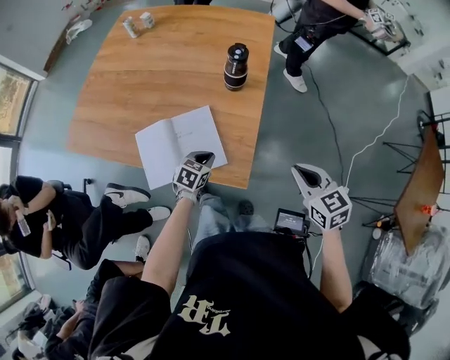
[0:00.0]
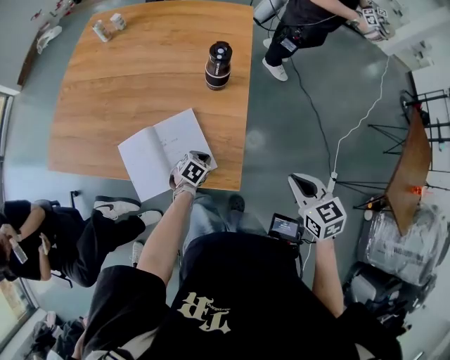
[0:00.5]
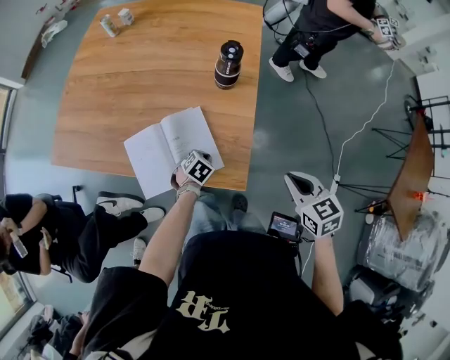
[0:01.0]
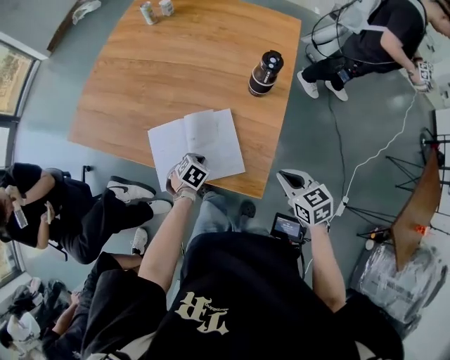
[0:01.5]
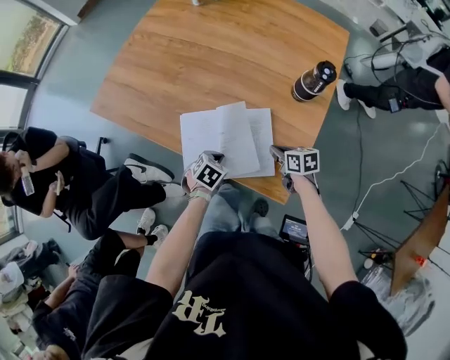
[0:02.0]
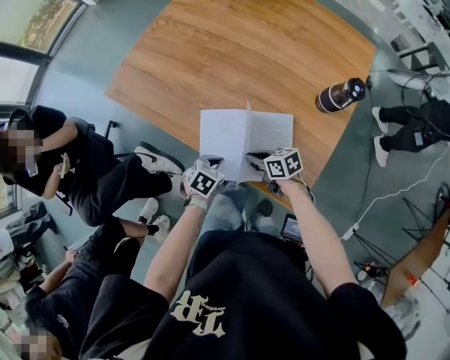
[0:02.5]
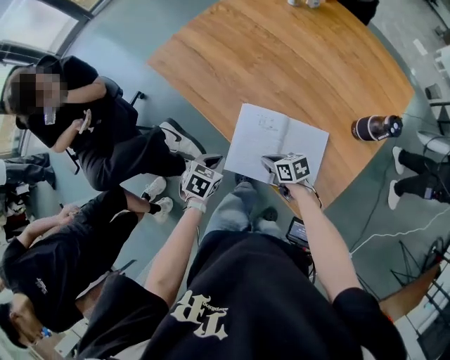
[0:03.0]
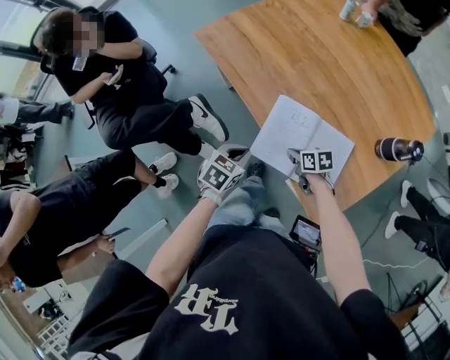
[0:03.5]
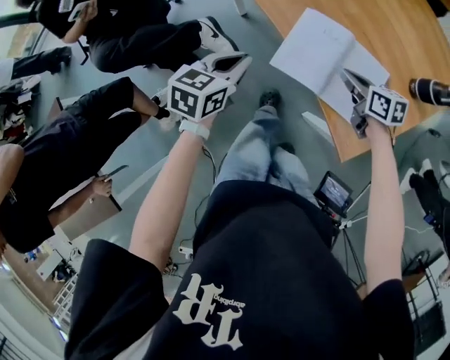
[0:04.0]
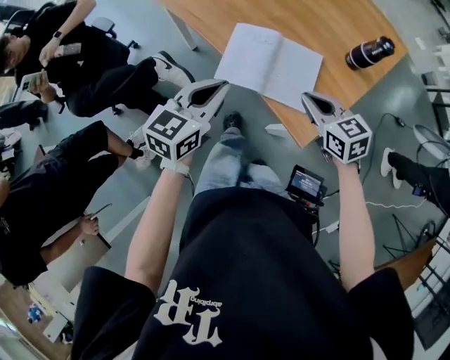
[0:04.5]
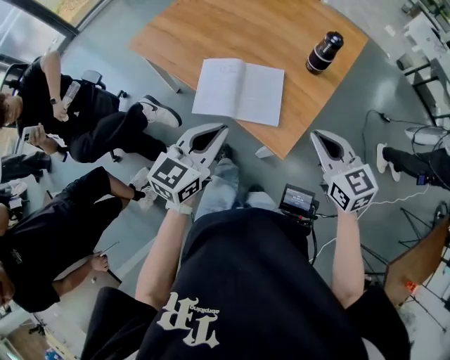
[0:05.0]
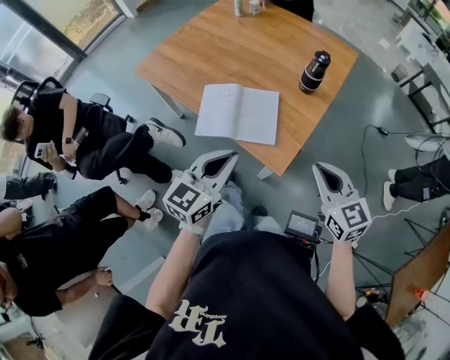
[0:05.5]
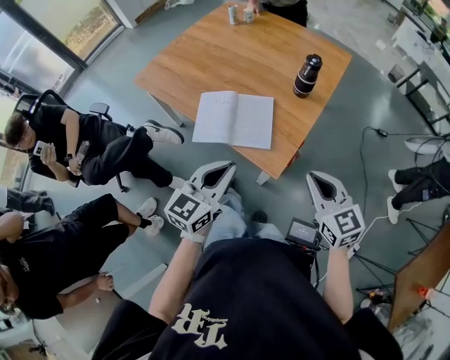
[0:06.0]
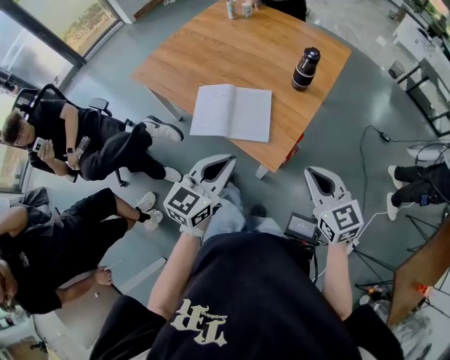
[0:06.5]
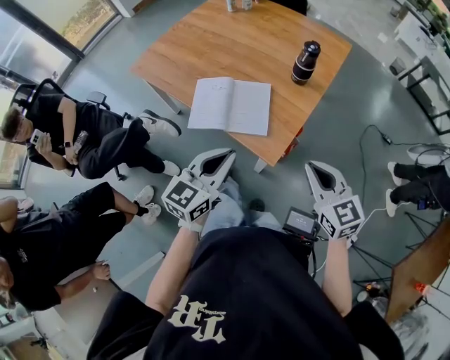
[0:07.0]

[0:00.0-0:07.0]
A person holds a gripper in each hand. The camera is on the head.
0:00.0 to 0:02.0: The right gripper changes place by roughly 35 cm, and swivels roughly 30 degrees; the left gripper changes place by about 15 cm.
0:02.0 to 0:03.5: The right gripper moves roughly 20 cm, and rotates about 30 degrees. The left gripper ends up approximately 20 cm from where it was, and swivels about 40 degrees.
0:03.5 to 0:05.0: Both grippers travel together upward, approximately 30 cm. The right gripper changes its angle by about 50 degrees. Meanwhile the left gripper tilts its fingers roughly 40 degrees upward.
0:05.0 to 0:07.0: The left gripper moves to the right, some 5 cm. The right gripper heads backward and to the right, covering roughly 10 cm.

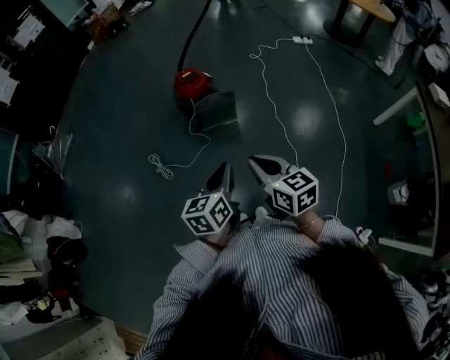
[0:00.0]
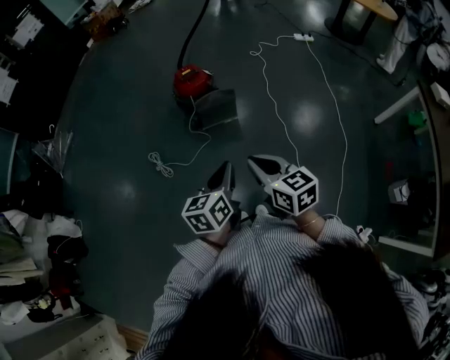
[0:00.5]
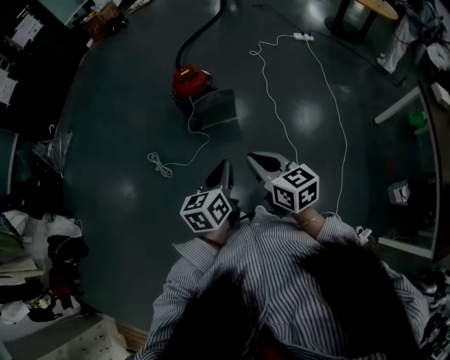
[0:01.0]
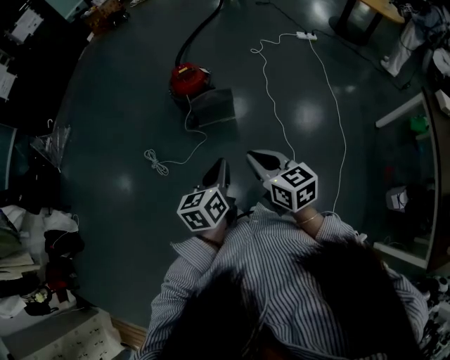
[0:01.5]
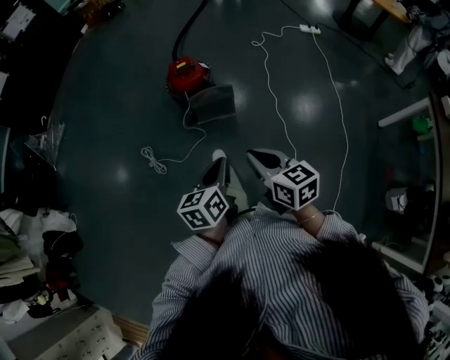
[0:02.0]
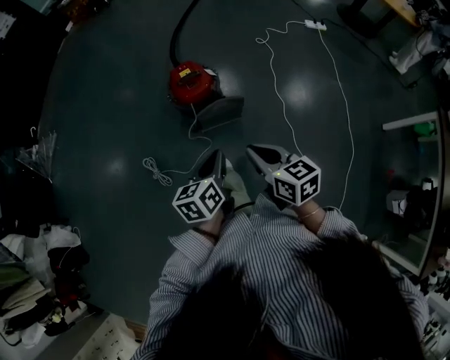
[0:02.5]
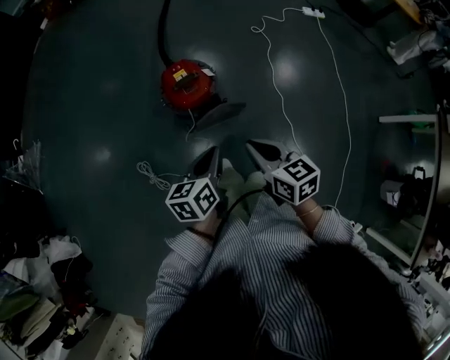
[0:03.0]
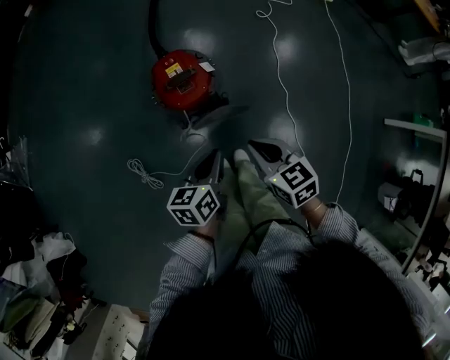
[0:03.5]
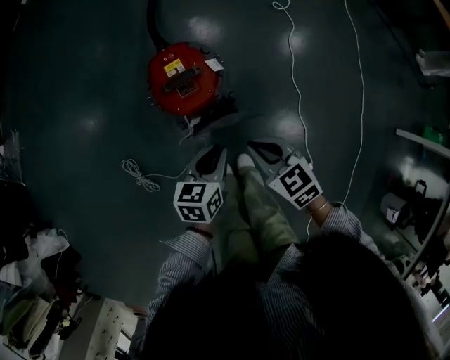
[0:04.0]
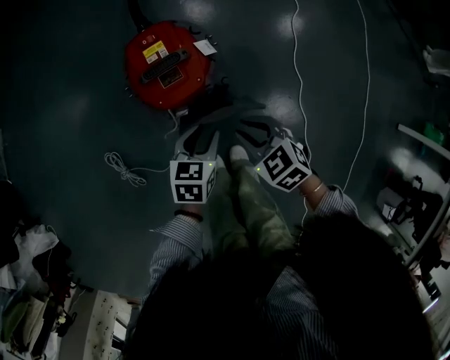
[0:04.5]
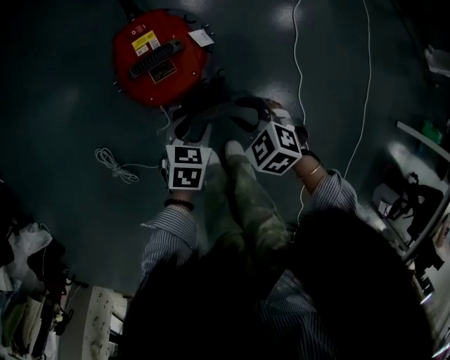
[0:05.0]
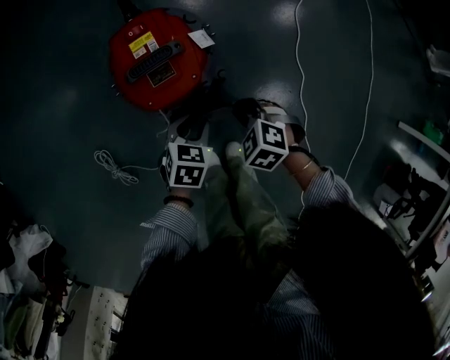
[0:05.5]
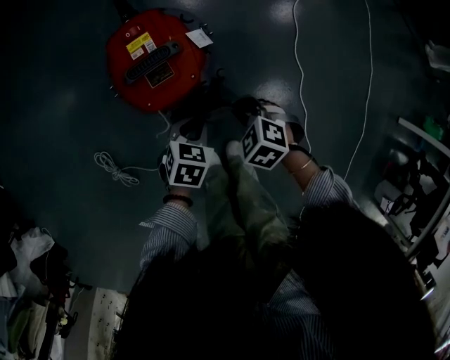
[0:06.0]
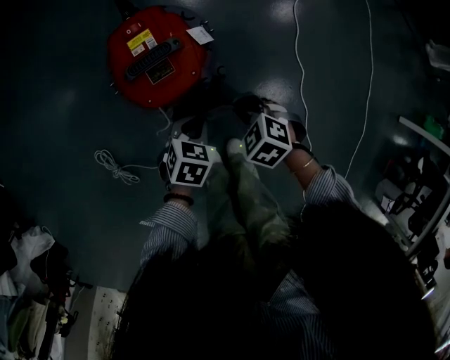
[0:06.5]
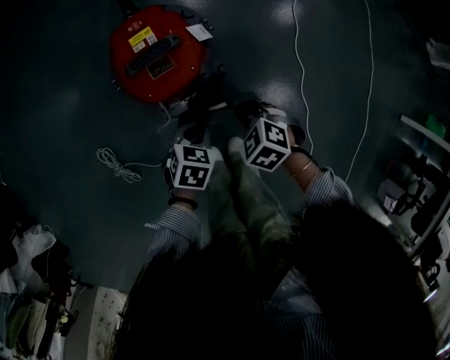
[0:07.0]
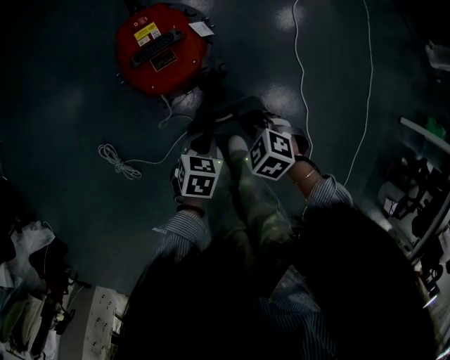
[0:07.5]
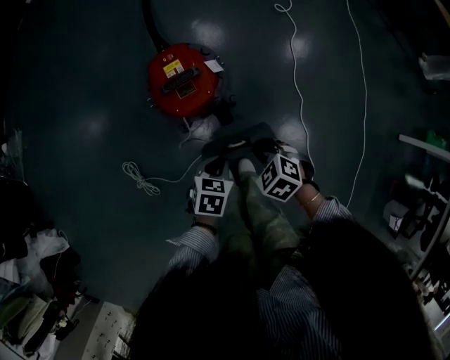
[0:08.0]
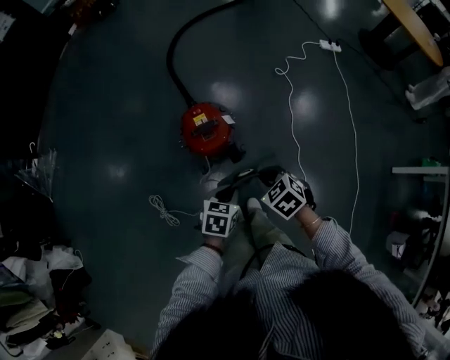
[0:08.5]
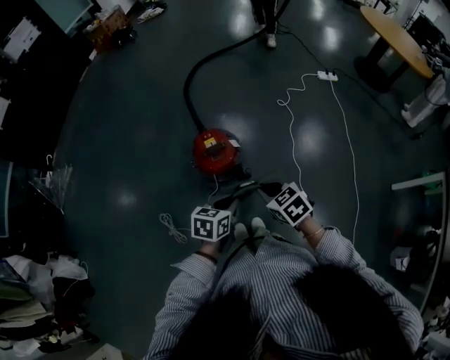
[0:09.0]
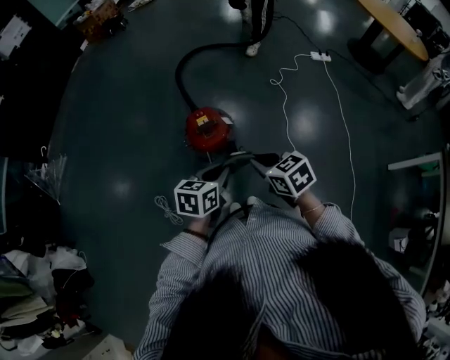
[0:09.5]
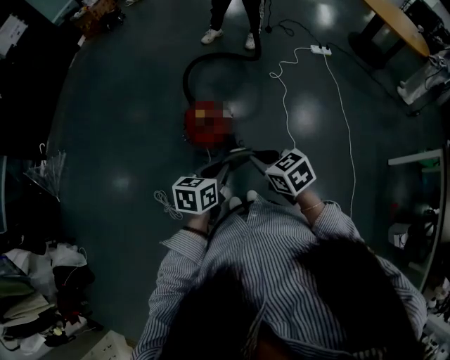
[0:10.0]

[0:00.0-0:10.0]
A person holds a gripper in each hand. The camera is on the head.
0:00.0 to 0:02.0: The right gripper moves forward, approximately 10 cm; the left gripper goes some 10 cm forward and downward.
0:02.0 to 0:04.0: The two grippers travel together, forward, approximately 50 cm. The two grippers go approximately 30 cm downward. The left gripper swivels roughly 20 degrees. The right gripper swivels some 30 degrees.
0:04.0 to 0:06.0: The grippers both shift downward by some 20 cm. The right gripper changes its angle by approximately 40 degrees, and opens and closes again. The left gripper changes its angle by approximately 30 degrees, and opens and closes again.
0:06.0 to 0:08.0: The grippers both shift upward and backward by about 15 cm.
0:08.0 to 0:10.0: The grippers both shift upward by about 35 cm. The right gripper rotates about 40 degrees. Meanwhile the left gripper turns by approximately 20 degrees.

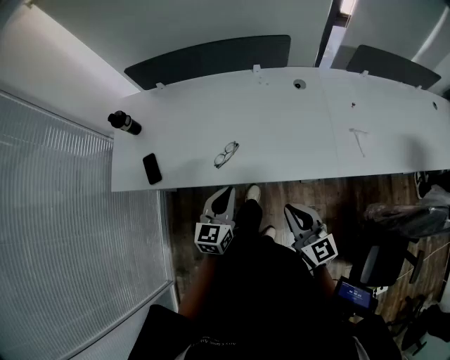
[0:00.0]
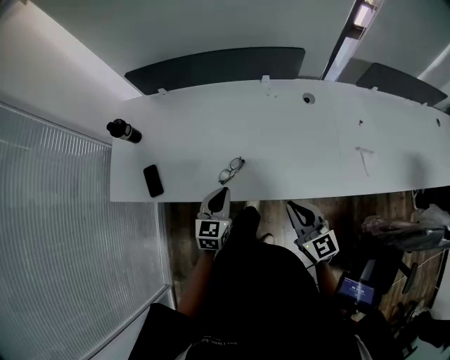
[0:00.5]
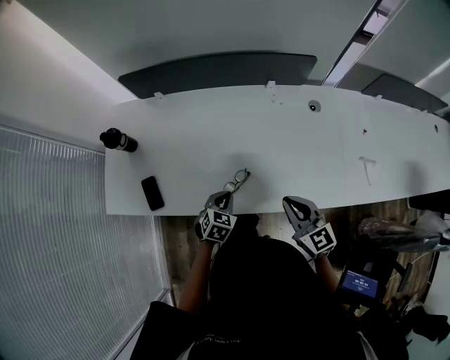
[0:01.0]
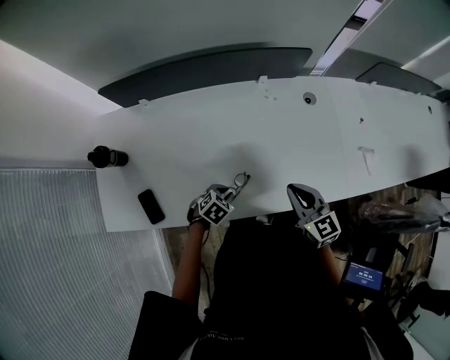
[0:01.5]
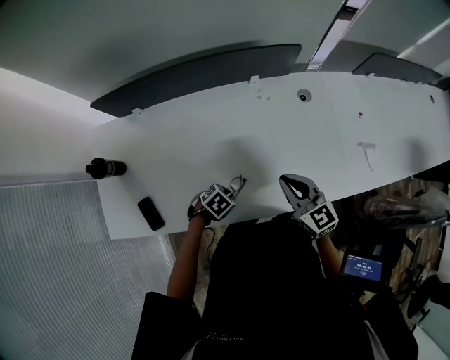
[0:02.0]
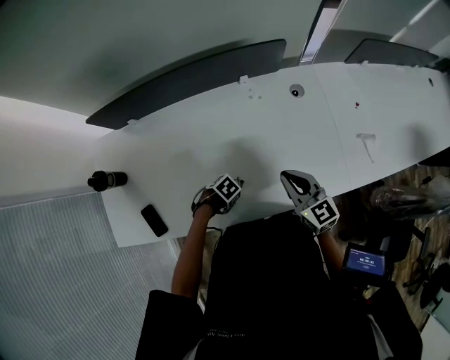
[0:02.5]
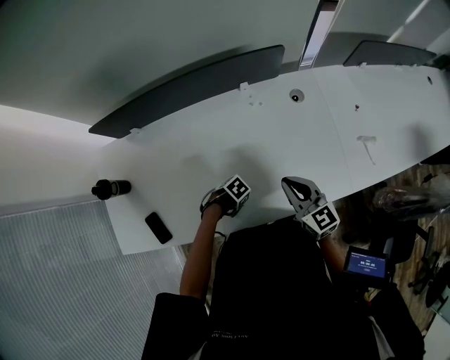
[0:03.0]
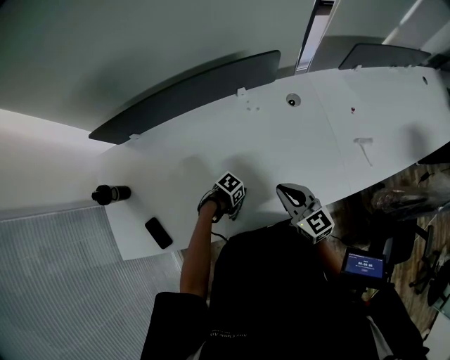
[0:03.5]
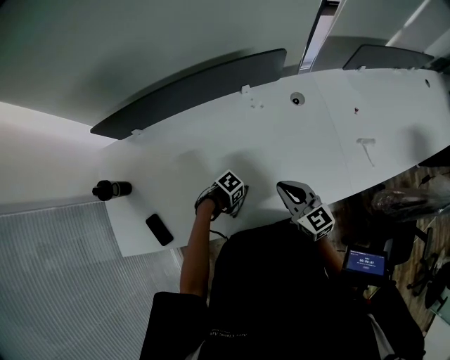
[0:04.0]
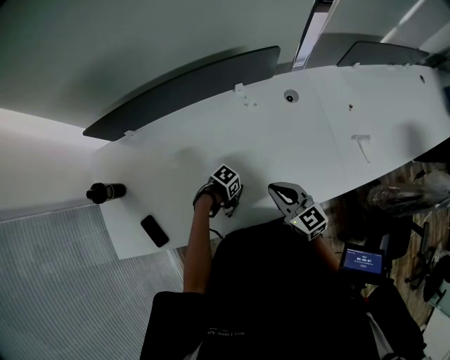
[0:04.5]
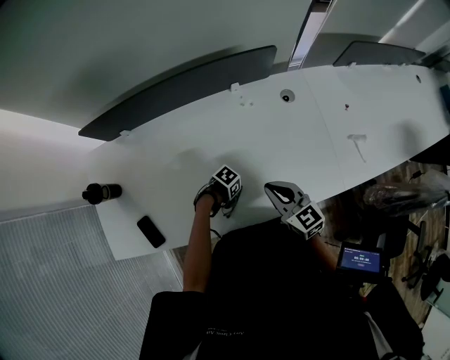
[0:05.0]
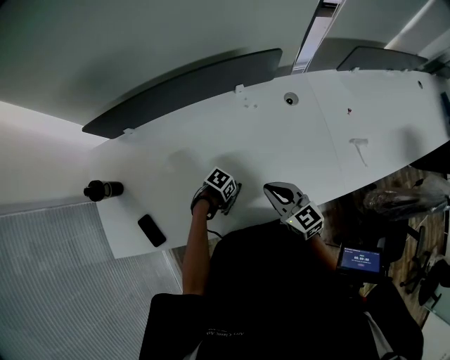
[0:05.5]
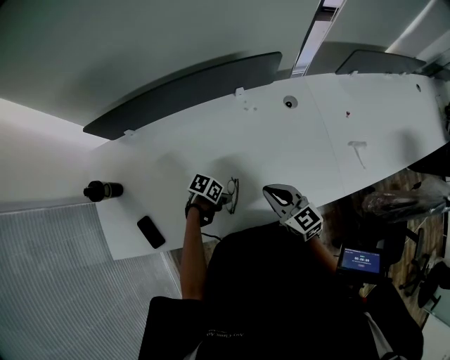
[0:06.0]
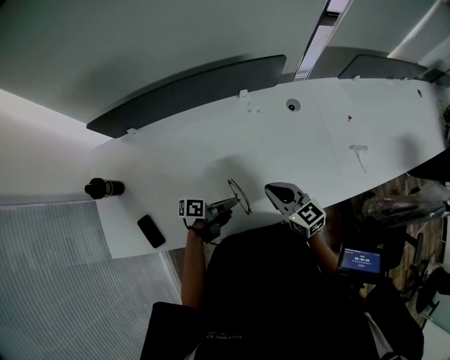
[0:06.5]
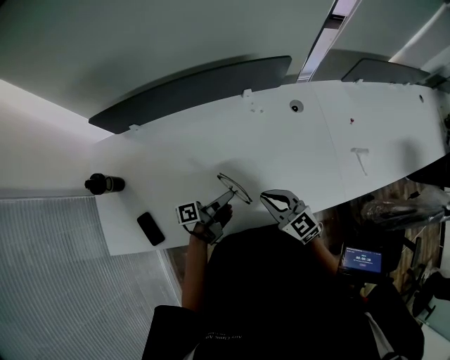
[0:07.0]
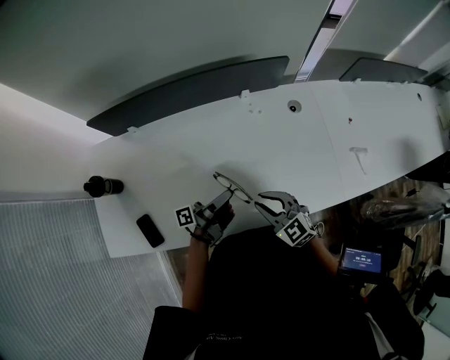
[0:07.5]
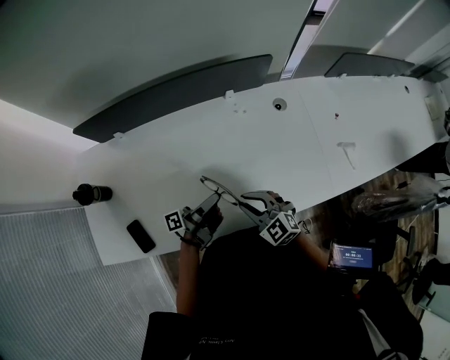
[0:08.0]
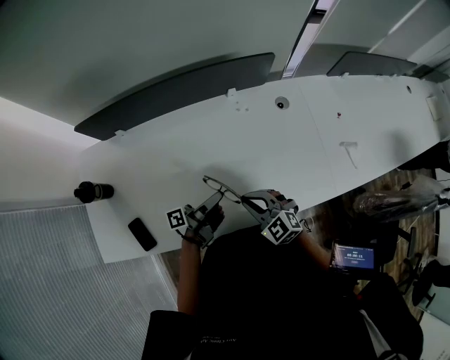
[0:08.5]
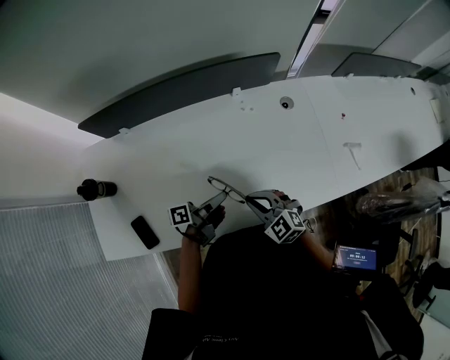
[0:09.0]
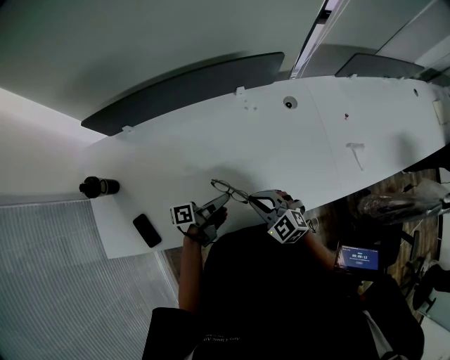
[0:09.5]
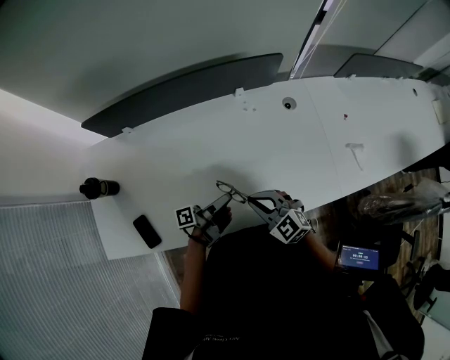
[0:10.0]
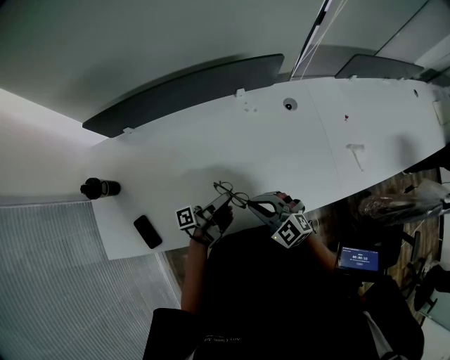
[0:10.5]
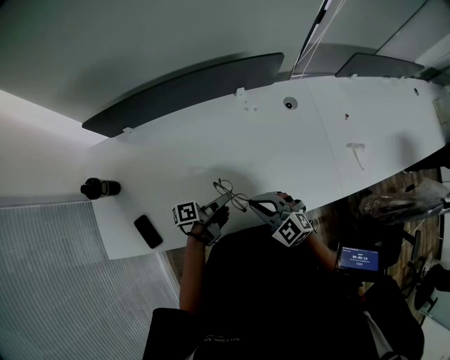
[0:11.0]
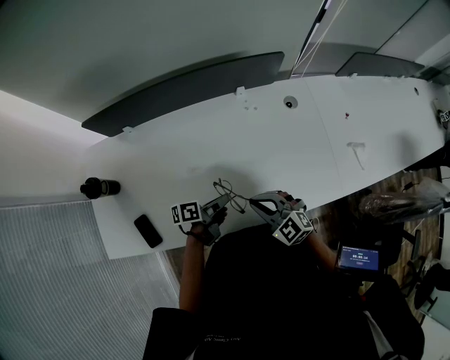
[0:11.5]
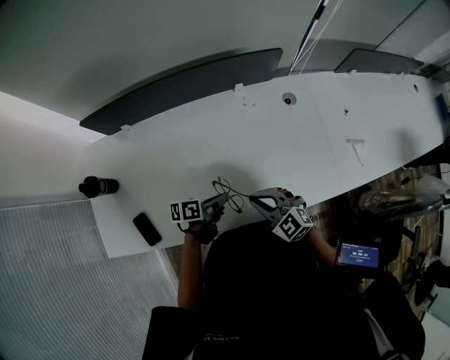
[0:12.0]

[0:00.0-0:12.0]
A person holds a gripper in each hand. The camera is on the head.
0:00.0 to 0:02.0: The right gripper changes place by roughly 25 cm.
0:06.0 to 0:08.0: The right gripper changes place by about 5 cm, and turns by approximately 30 degrees.
